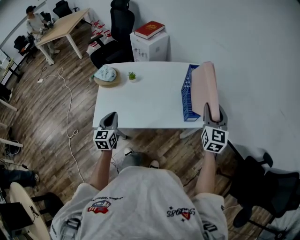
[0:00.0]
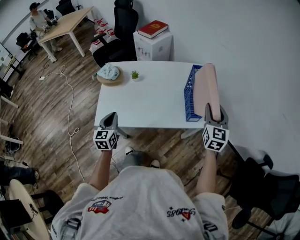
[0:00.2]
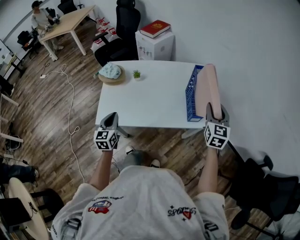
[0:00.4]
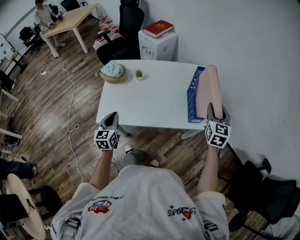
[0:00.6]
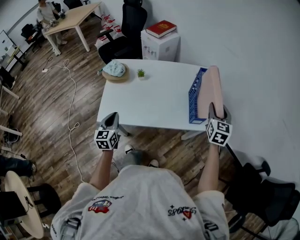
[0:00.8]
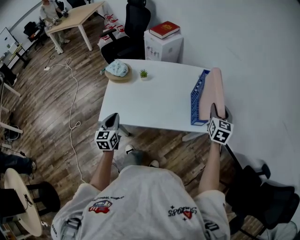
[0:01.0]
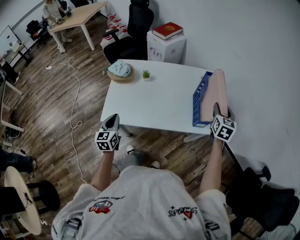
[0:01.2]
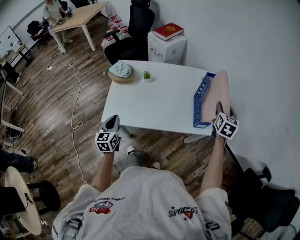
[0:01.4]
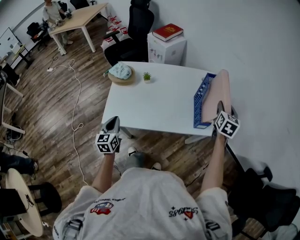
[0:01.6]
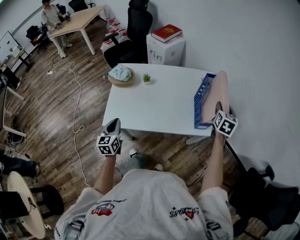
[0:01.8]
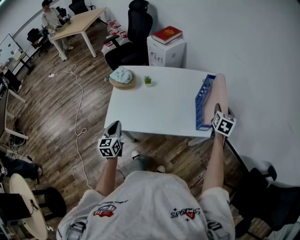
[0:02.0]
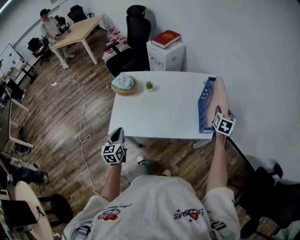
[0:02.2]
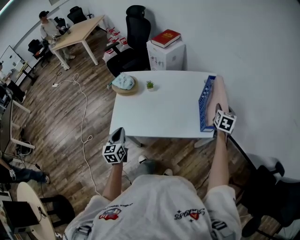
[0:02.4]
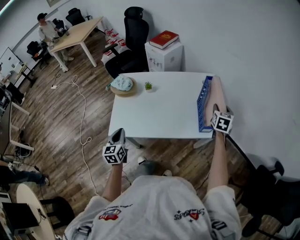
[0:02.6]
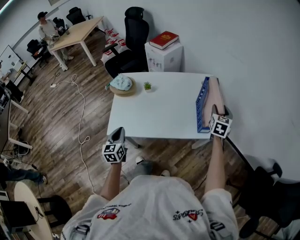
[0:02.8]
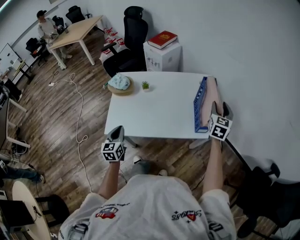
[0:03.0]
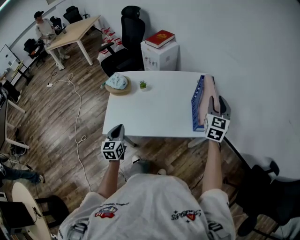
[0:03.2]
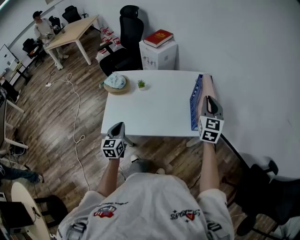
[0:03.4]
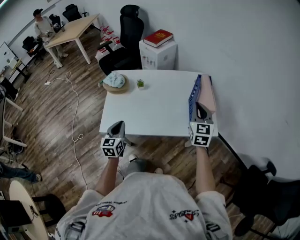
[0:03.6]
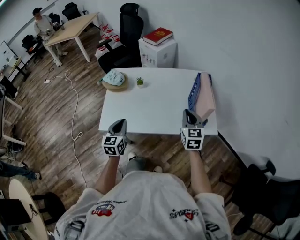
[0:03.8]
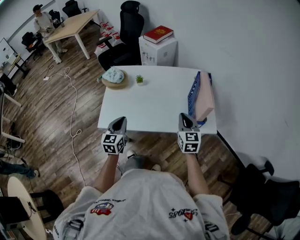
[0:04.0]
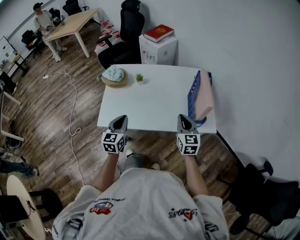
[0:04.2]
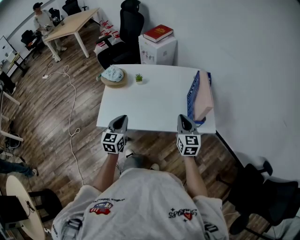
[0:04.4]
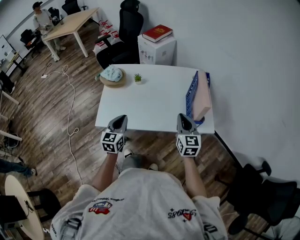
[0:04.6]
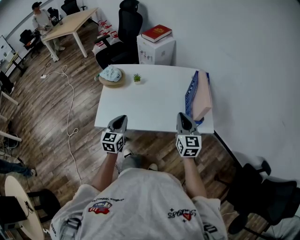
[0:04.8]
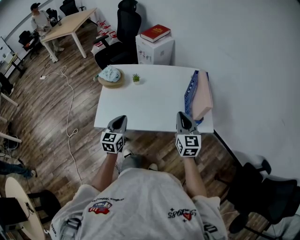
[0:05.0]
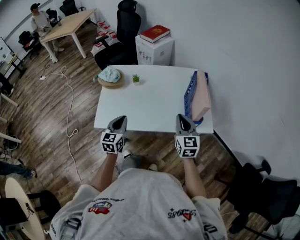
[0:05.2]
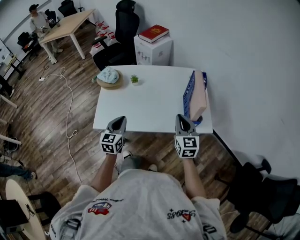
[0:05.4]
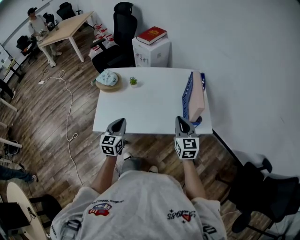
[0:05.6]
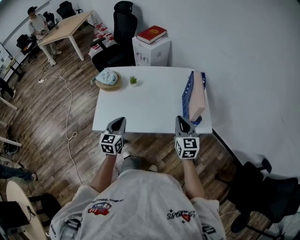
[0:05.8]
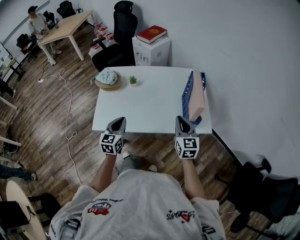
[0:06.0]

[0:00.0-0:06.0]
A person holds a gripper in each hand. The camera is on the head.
0:00.0 to 0:01.6: The left gripper is displaced to the left by roughly 5 cm, while the right gripper travels forward by about 10 cm, and changes its angle by some 20 degrees.
0:03.0 to 0:04.4: The right gripper heads to the left, backward and downward, covering about 20 cm, swivels some 30 degrees, and closes up. The left gripper shifts approximately 5 cm to the right.
0:04.4 to 0:06.0: There are only small adjustments of the grippers.

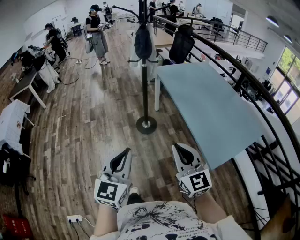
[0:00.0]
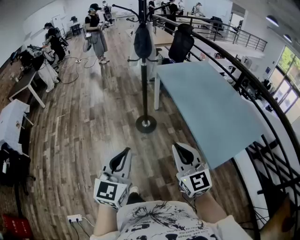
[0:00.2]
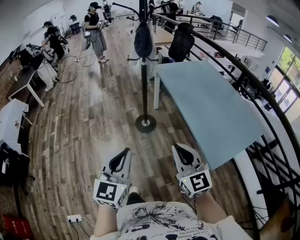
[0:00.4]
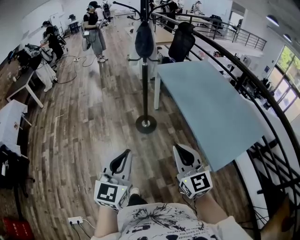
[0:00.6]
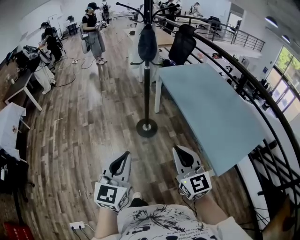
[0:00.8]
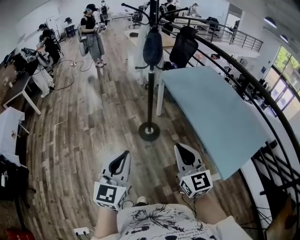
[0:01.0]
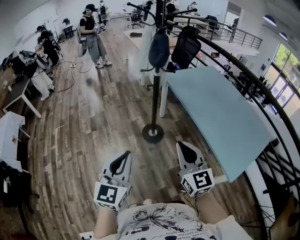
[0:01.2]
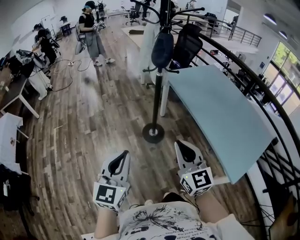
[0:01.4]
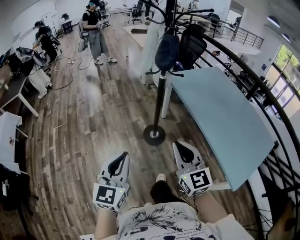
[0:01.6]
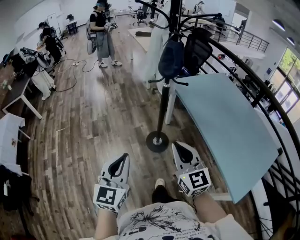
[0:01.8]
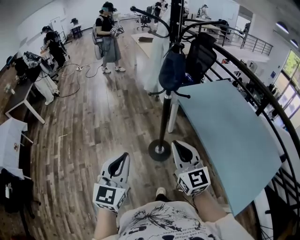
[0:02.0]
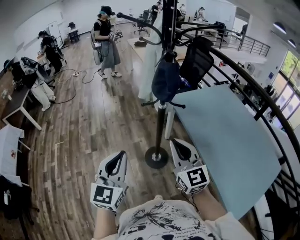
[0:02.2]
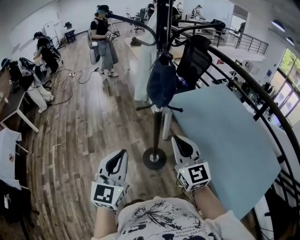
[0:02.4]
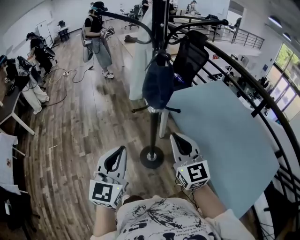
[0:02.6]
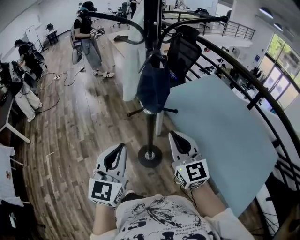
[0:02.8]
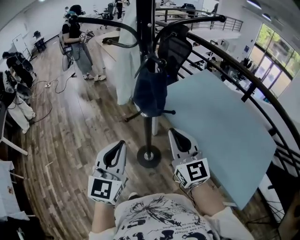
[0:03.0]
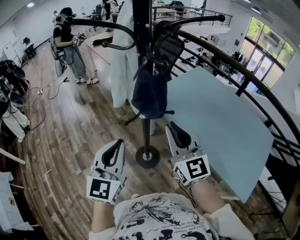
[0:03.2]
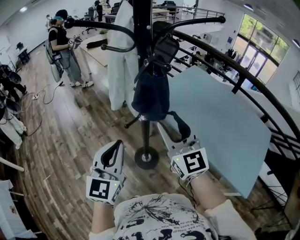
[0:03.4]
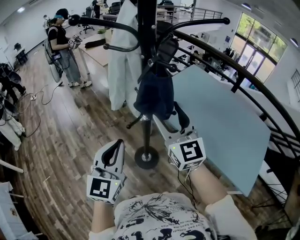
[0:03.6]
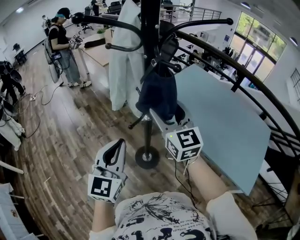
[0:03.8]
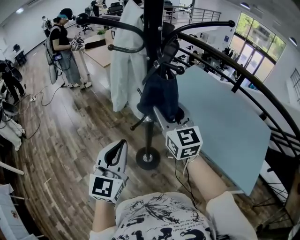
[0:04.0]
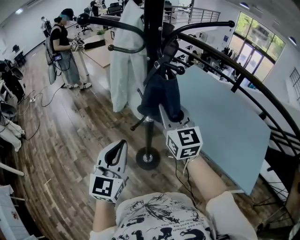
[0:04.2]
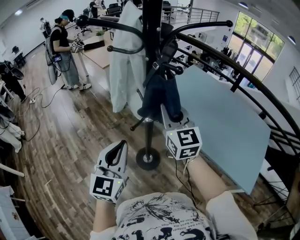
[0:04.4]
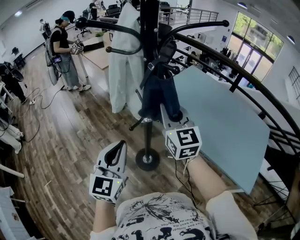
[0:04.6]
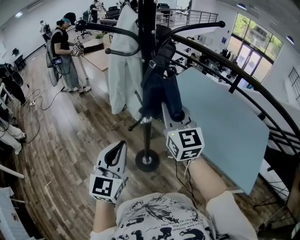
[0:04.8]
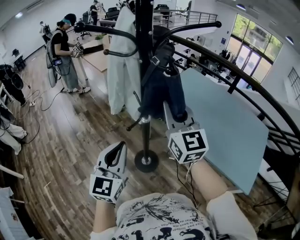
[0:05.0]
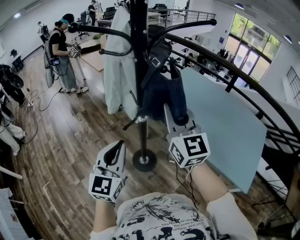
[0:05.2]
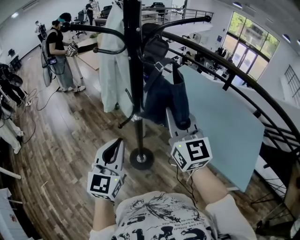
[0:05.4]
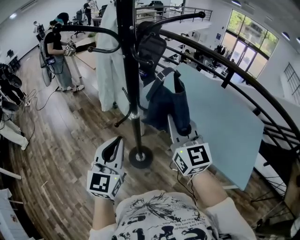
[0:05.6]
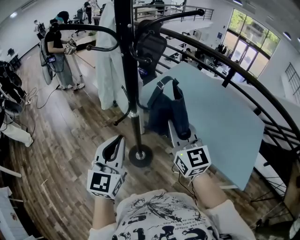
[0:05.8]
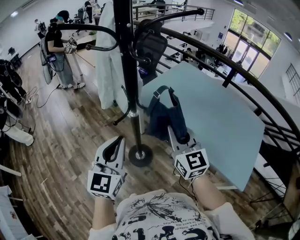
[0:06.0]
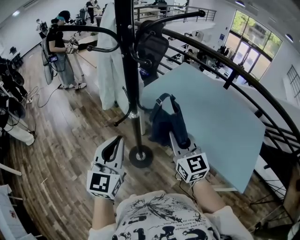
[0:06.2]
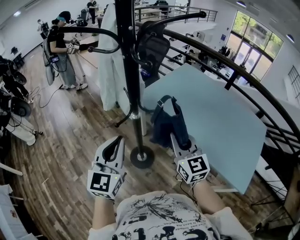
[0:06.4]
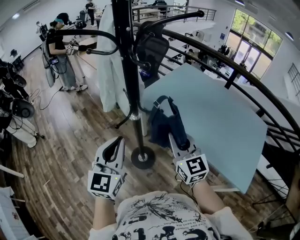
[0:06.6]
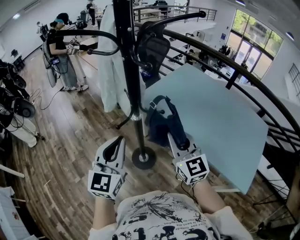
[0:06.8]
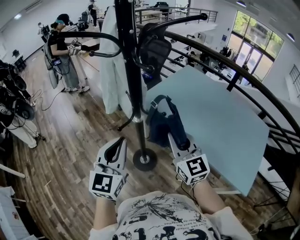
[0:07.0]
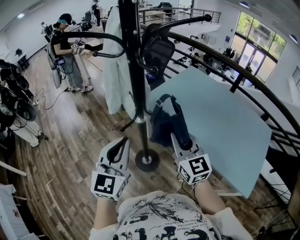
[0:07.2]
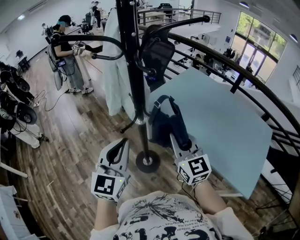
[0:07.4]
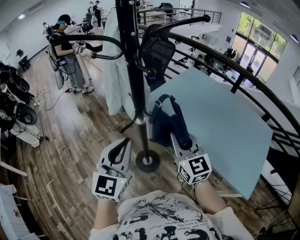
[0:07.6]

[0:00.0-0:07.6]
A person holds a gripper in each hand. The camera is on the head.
0:00.0 to 0:01.6: Both grippers travel together forward and to the left, some 30 cm.
0:01.6 to 0:03.0: The two grippers go some 35 cm forward.
0:03.0 to 0:04.6: The right gripper travels forward and to the left by approximately 10 cm, and opens and closes again. Meanwhile the left gripper changes place by roughly 5 cm.
0:04.6 to 0:06.0: The left gripper goes roughly 5 cm to the right; the right gripper travels to the right, backward and downward by approximately 15 cm.
0:06.0 to 0:07.6: There are only small adjustments of the grippers.

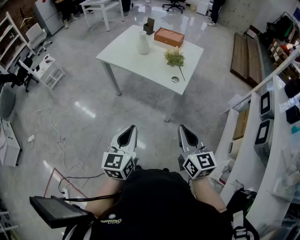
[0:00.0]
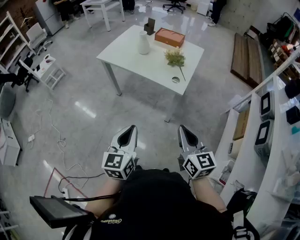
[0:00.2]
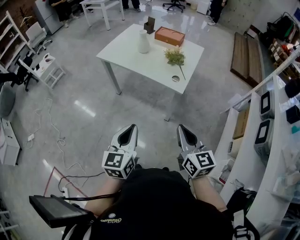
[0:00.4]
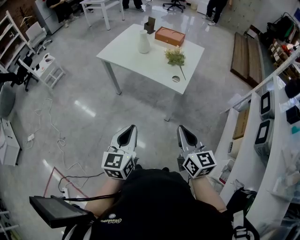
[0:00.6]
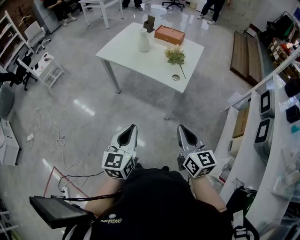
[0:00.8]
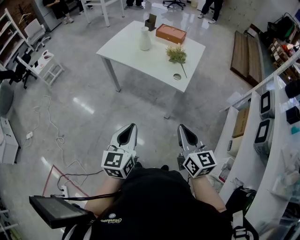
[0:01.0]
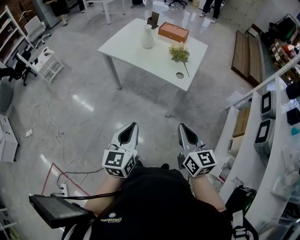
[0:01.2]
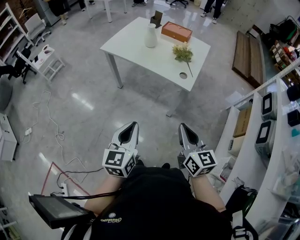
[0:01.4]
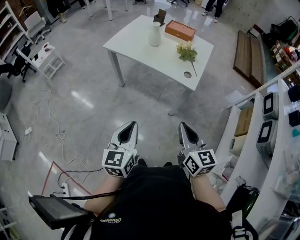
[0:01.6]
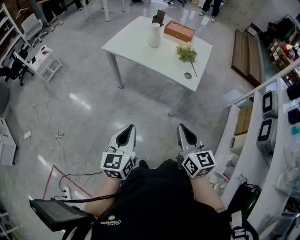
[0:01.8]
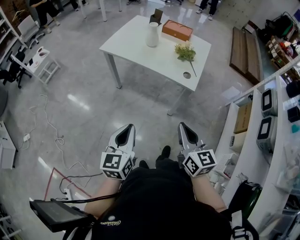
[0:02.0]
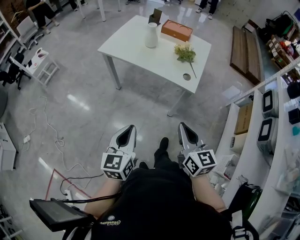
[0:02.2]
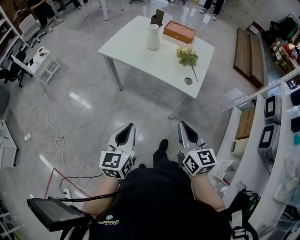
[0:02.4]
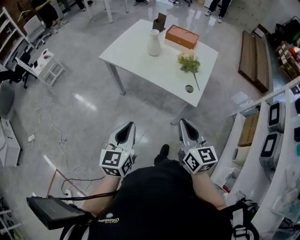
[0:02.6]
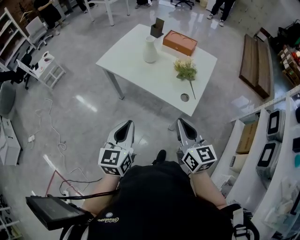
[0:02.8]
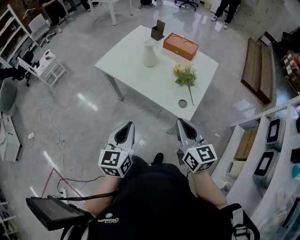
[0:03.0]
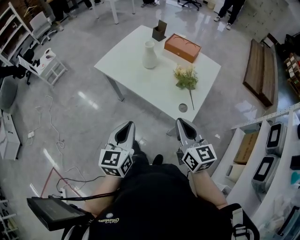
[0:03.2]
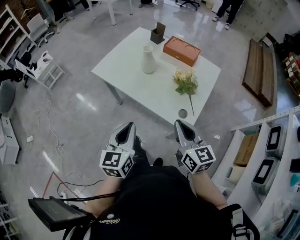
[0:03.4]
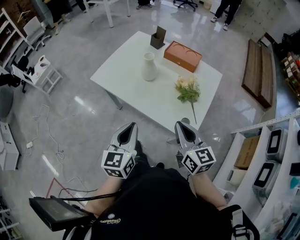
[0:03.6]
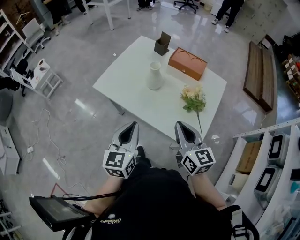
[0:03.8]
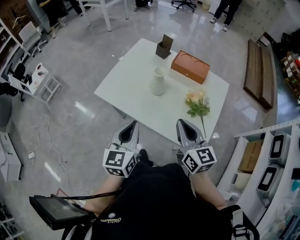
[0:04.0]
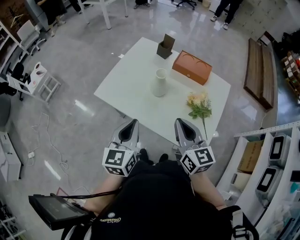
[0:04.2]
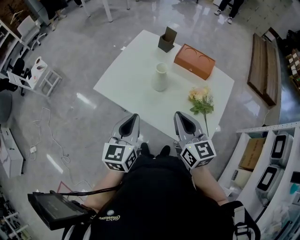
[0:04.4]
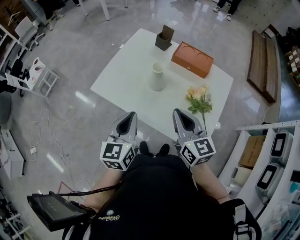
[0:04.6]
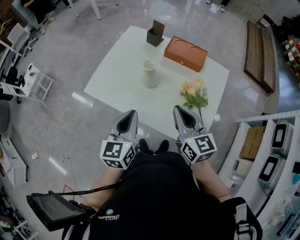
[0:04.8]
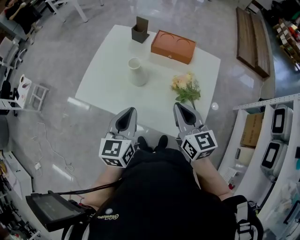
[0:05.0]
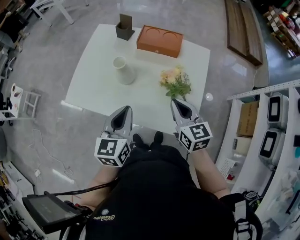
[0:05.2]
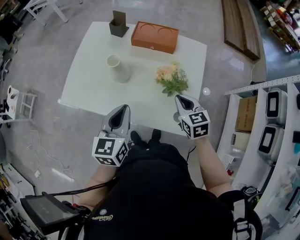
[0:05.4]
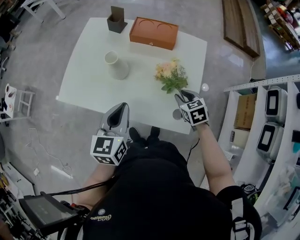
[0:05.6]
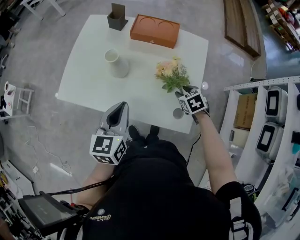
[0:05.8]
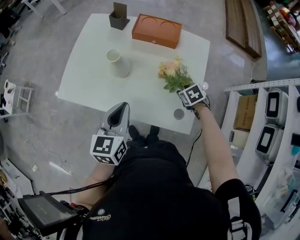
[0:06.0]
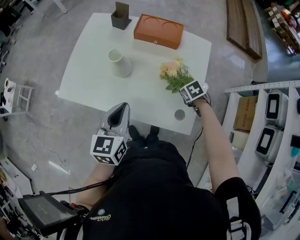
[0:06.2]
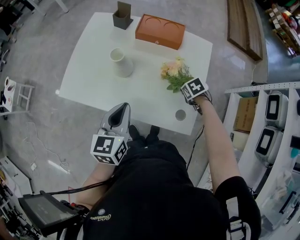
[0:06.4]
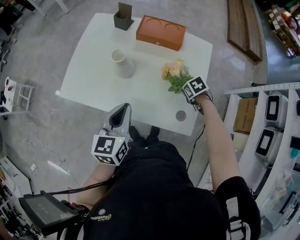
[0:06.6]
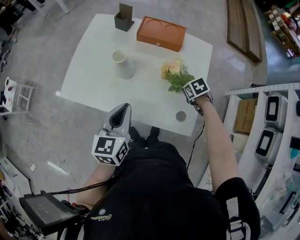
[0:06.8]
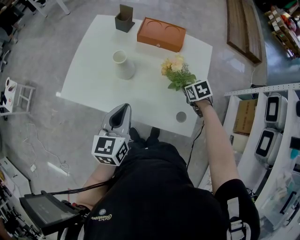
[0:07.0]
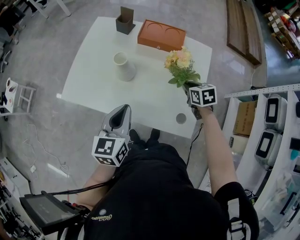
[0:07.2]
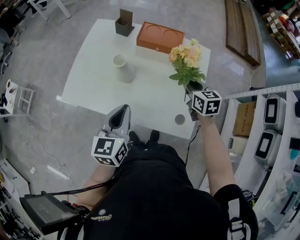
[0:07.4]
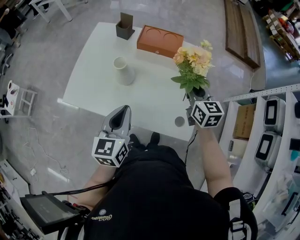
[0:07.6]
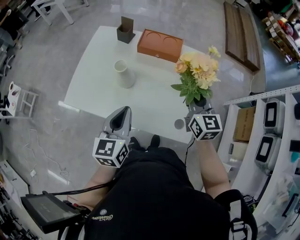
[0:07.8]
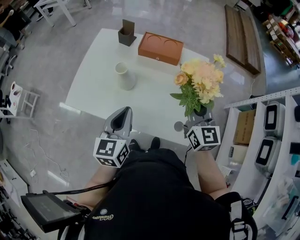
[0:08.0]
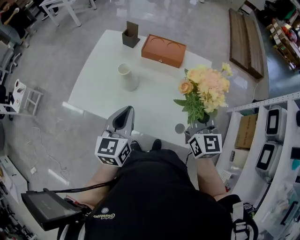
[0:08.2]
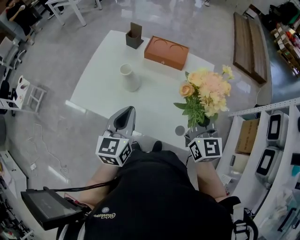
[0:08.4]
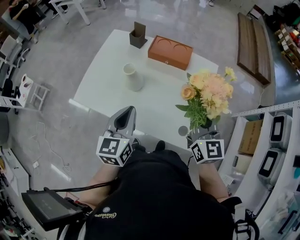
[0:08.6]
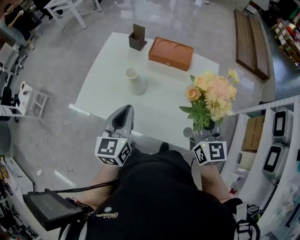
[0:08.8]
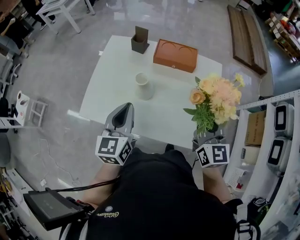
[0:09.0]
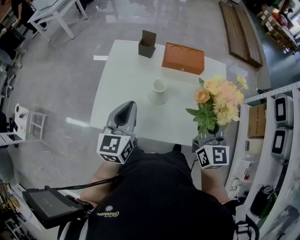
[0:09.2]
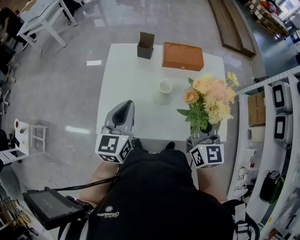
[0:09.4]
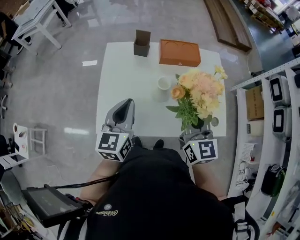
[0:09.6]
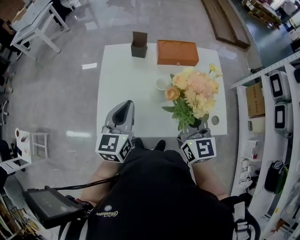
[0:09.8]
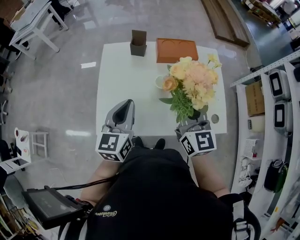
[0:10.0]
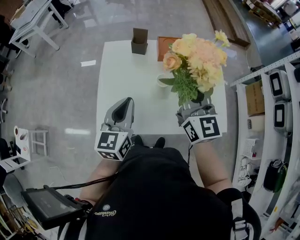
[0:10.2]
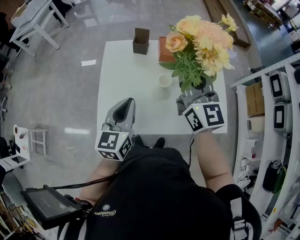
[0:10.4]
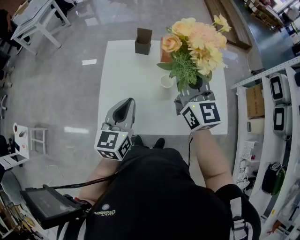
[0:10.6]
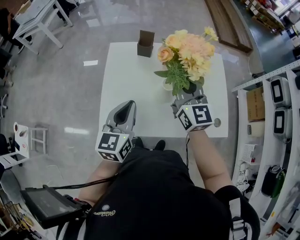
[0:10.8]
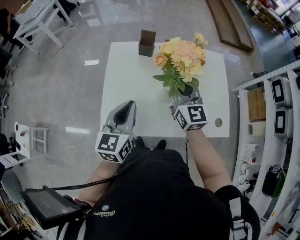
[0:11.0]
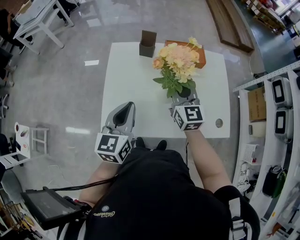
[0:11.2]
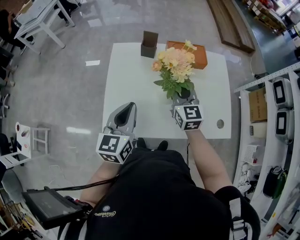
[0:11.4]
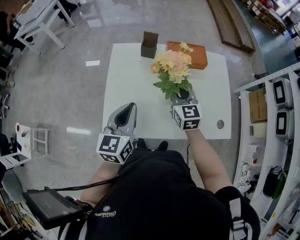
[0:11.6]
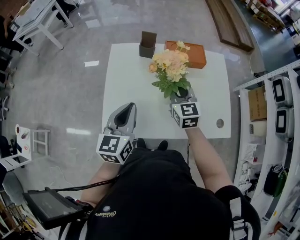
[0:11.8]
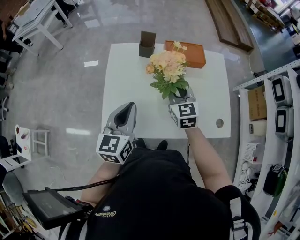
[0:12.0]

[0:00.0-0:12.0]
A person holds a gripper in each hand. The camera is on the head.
0:00.0 to 0:01.6: The two grippers go roughly 10 cm to the left.
0:01.6 to 0:03.0: Both grippers travel together forward, some 20 cm.
0:03.0 to 0:04.4: Both grippers travel together forward, approximately 25 cm.
0:04.4 to 0:06.0: The right gripper moves downward and to the right, some 35 cm, points its fingers about 60 degrees further downward, and opens. The left gripper heads to the right and downward, covering approximately 10 cm.
0:06.0 to 0:07.6: The right gripper moves upward, some 20 cm, angles its fingers upward, by about 50 degrees, and closes its fingers.
0:07.6 to 0:09.0: The left gripper moves to the left and forward, approximately 10 cm, while the right gripper shifts roughly 15 cm upward, backward and to the left.
0:09.0 to 0:10.4: The left gripper travels to the left by approximately 10 cm. Meanwhile the right gripper is displaced to the left and upward by some 25 cm.
0:10.4 to 0:12.0: The right gripper goes some 20 cm downward, and changes its angle by about 30 degrees.
